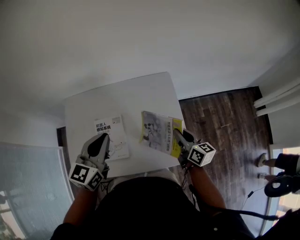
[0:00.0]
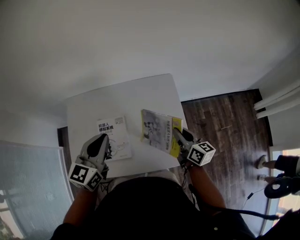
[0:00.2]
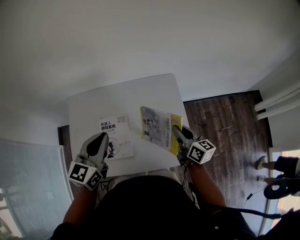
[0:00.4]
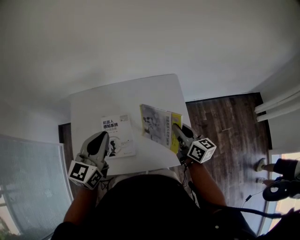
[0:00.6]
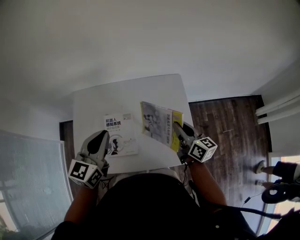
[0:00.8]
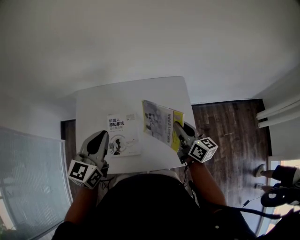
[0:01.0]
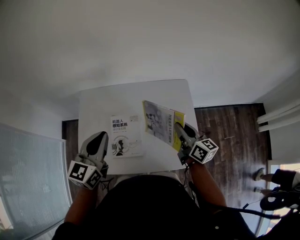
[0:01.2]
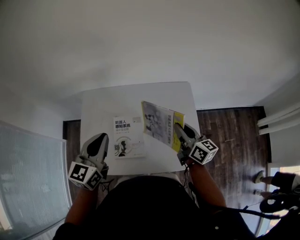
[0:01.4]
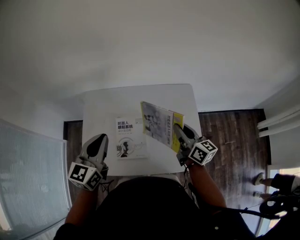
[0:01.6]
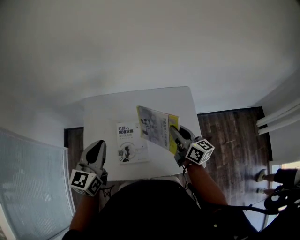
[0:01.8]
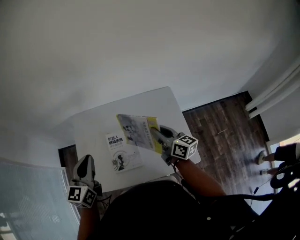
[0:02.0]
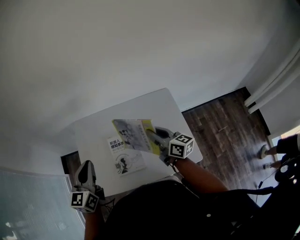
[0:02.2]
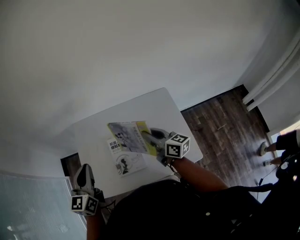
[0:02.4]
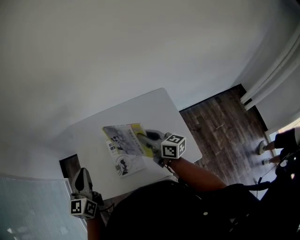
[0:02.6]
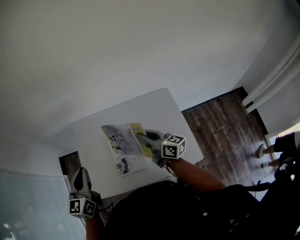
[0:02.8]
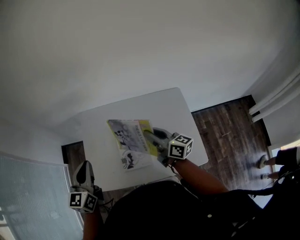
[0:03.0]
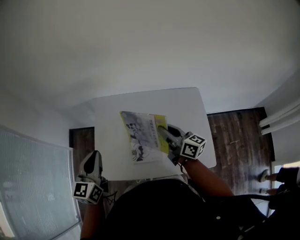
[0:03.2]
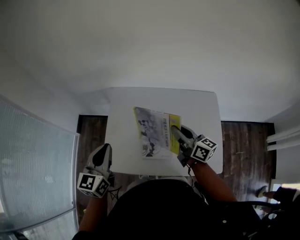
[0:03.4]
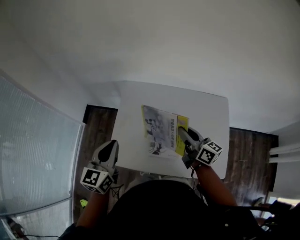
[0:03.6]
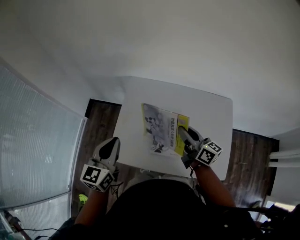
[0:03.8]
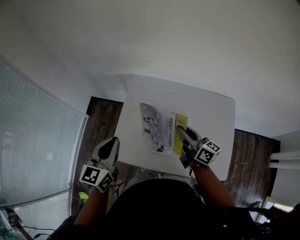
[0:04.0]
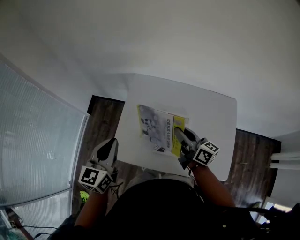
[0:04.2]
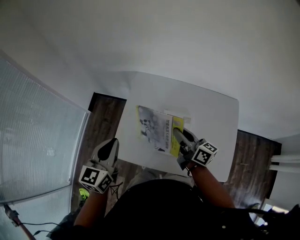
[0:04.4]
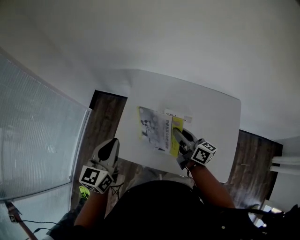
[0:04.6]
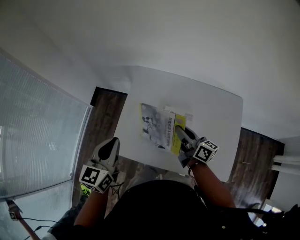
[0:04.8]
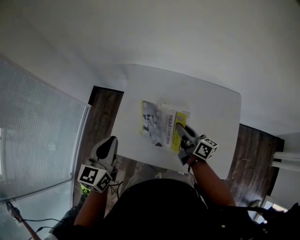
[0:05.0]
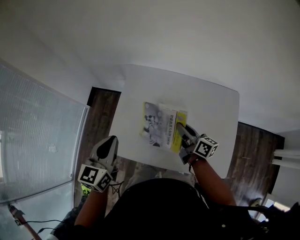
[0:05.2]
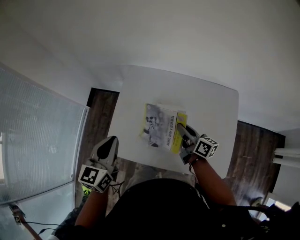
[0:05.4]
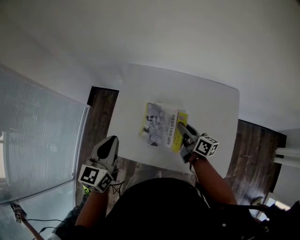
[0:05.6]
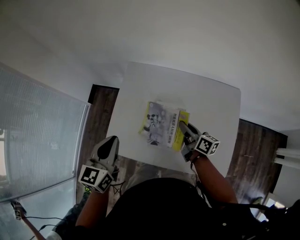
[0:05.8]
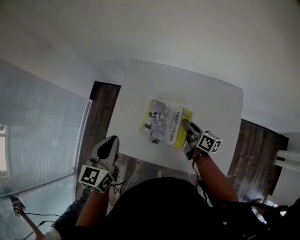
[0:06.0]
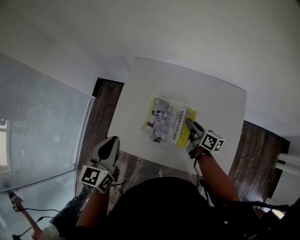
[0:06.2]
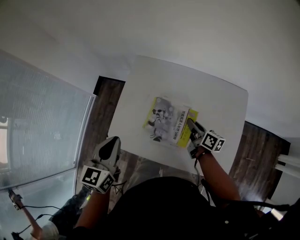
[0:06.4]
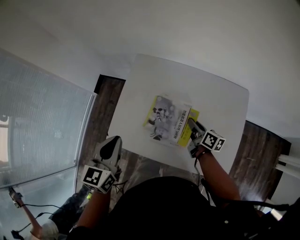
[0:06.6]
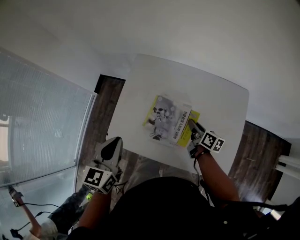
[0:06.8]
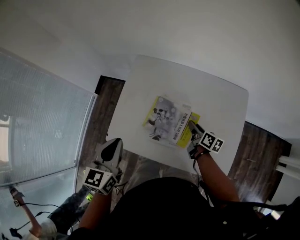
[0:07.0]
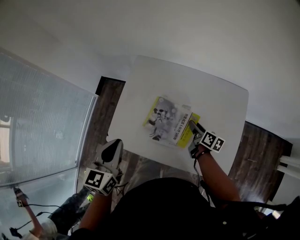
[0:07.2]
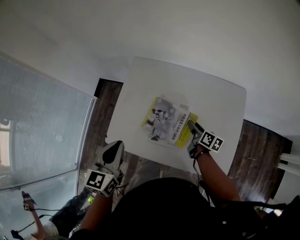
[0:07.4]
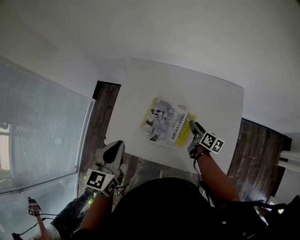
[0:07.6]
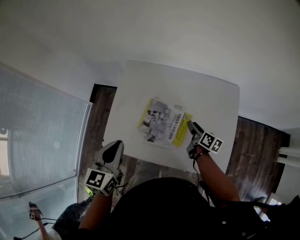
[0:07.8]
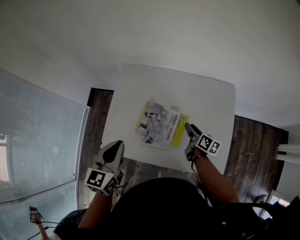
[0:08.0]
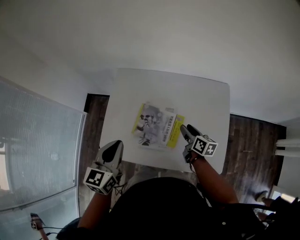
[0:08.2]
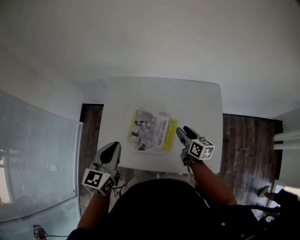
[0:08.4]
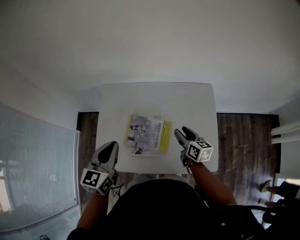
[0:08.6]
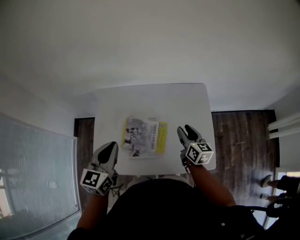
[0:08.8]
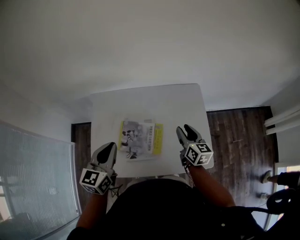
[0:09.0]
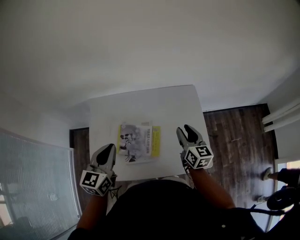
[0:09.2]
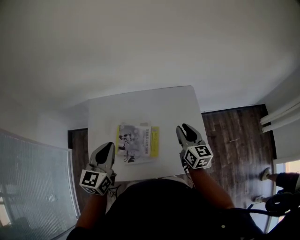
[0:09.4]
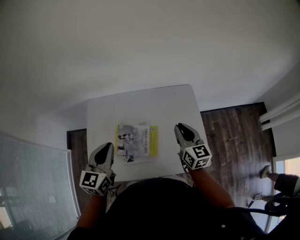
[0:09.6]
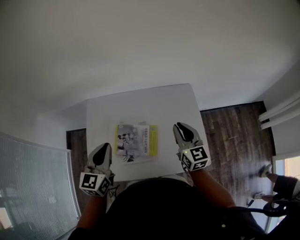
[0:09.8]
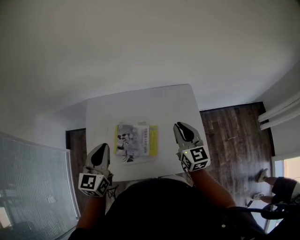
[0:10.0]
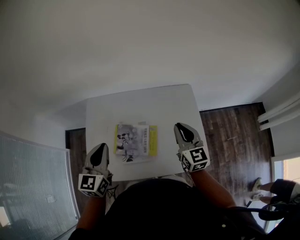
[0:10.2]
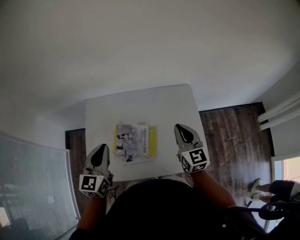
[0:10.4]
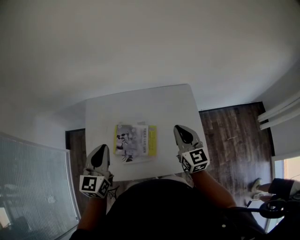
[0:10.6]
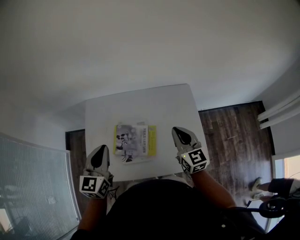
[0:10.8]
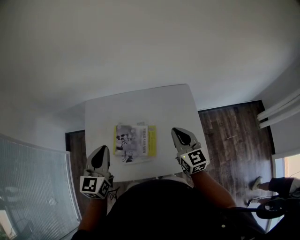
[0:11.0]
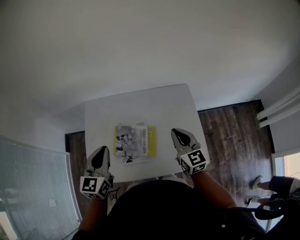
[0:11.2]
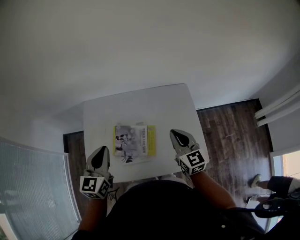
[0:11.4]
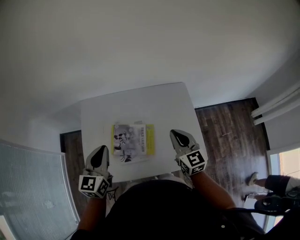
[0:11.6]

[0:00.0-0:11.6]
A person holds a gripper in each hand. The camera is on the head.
0:00.0 to 0:01.4: Both grippers travel together to the left, about 15 cm.
0:01.4 to 0:02.8: The right gripper moves upward, approximately 20 cm. Meanwhile the left gripper shifts approximately 20 cm upward and backward.
0:02.8 to 0:04.4: The left gripper moves to the right, roughly 5 cm.
0:04.4 to 0:05.8: The right gripper heads downward, covering about 10 cm.
0:05.8 to 0:07.2: The right gripper shifts roughly 10 cm downward.
0:07.2 to 0:08.8: The left gripper heads to the right and forward, covering about 10 cm, and swivels about 20 degrees, while the right gripper goes roughly 15 cm upward and to the right, and turns by roughly 30 degrees.
0:08.8 to 0:10.2: The right gripper heads upward, covering approximately 10 cm, rotates approximately 30 degrees, and closes up.
0:10.2 to 0:11.6: The grippers stay close to where they were, moving slightly.

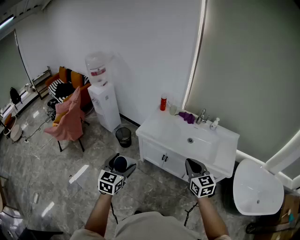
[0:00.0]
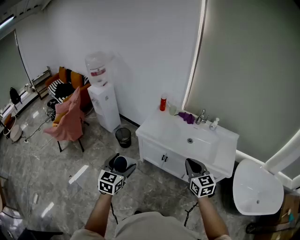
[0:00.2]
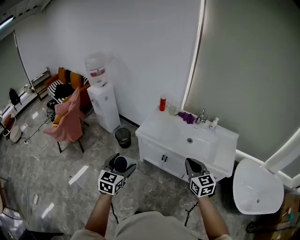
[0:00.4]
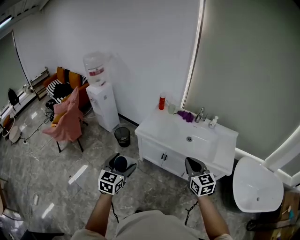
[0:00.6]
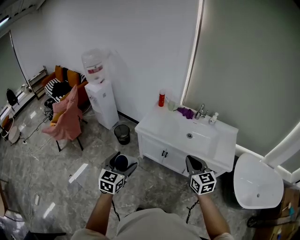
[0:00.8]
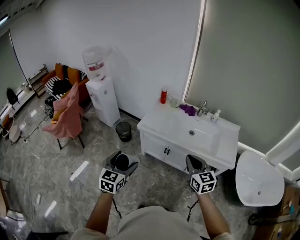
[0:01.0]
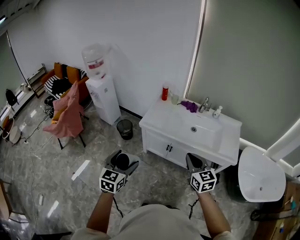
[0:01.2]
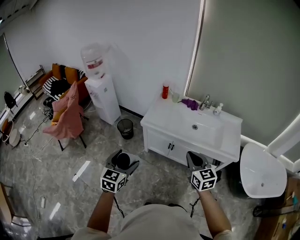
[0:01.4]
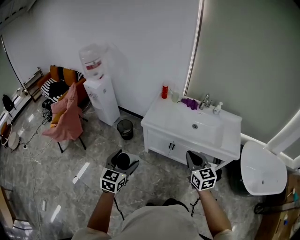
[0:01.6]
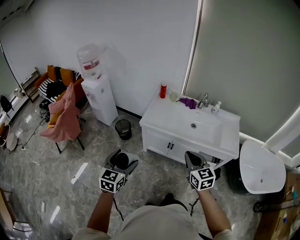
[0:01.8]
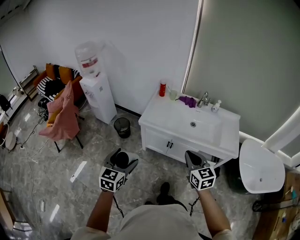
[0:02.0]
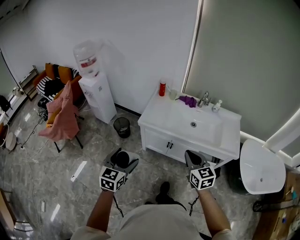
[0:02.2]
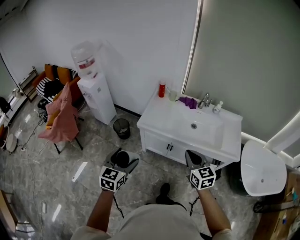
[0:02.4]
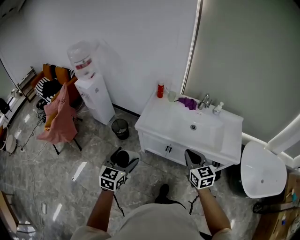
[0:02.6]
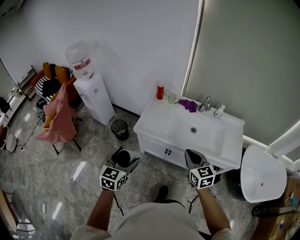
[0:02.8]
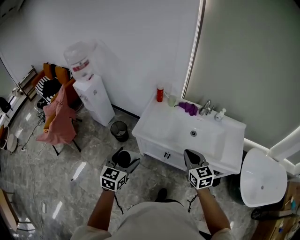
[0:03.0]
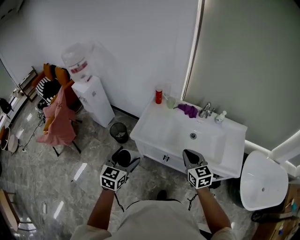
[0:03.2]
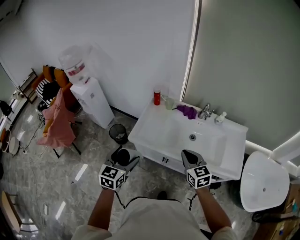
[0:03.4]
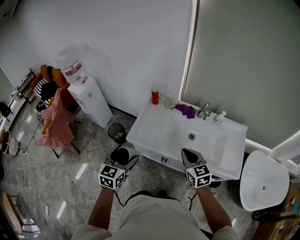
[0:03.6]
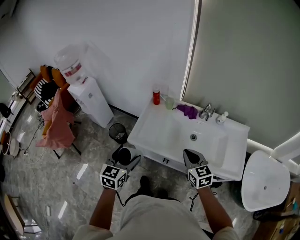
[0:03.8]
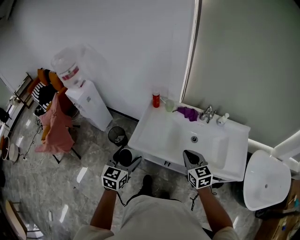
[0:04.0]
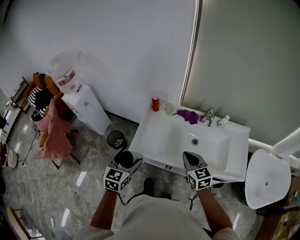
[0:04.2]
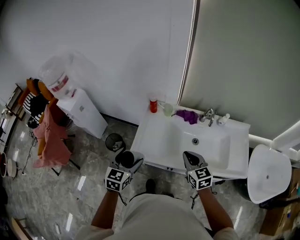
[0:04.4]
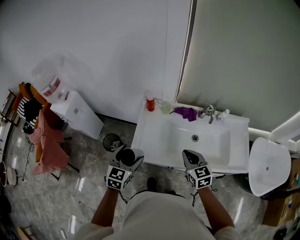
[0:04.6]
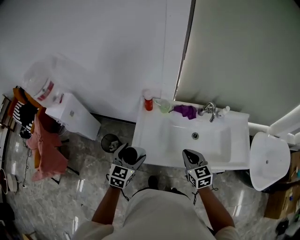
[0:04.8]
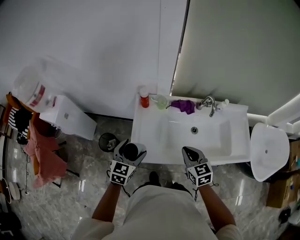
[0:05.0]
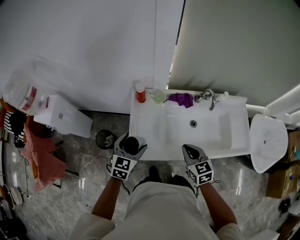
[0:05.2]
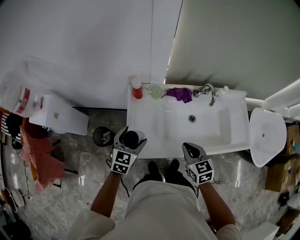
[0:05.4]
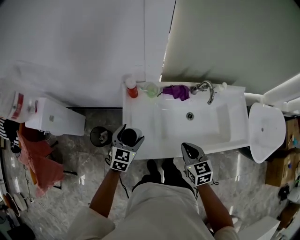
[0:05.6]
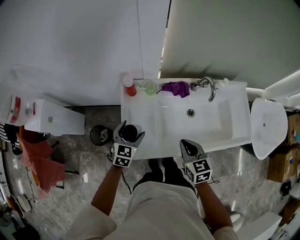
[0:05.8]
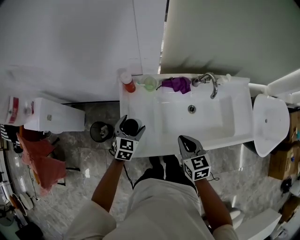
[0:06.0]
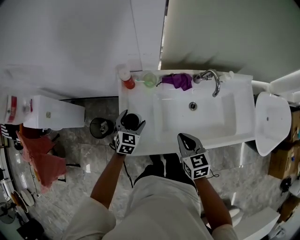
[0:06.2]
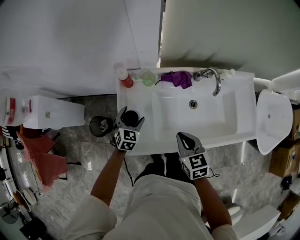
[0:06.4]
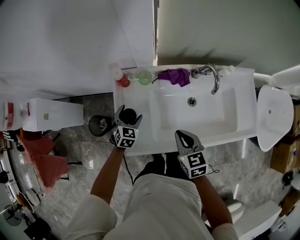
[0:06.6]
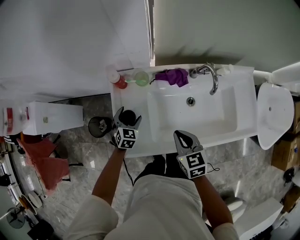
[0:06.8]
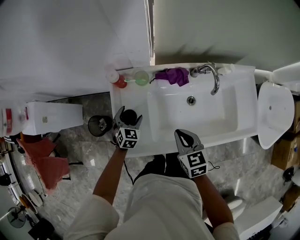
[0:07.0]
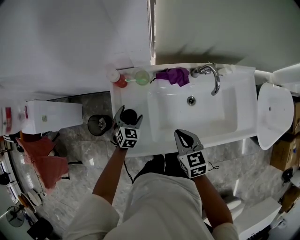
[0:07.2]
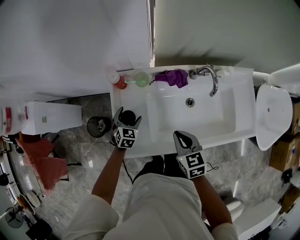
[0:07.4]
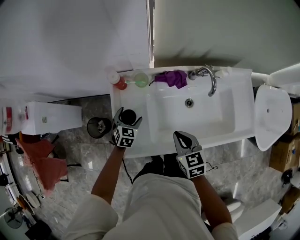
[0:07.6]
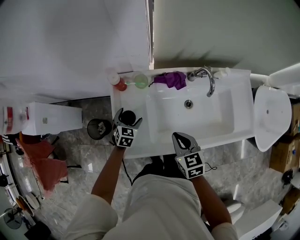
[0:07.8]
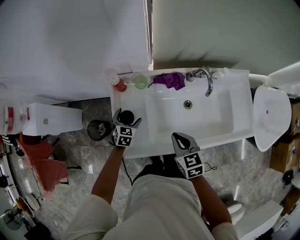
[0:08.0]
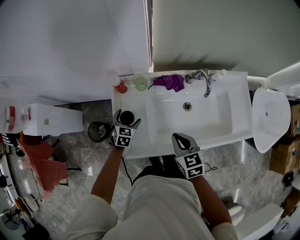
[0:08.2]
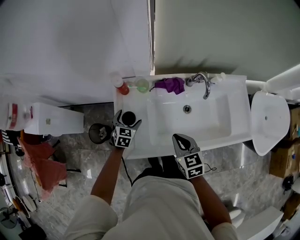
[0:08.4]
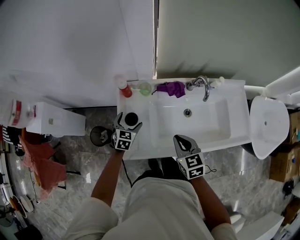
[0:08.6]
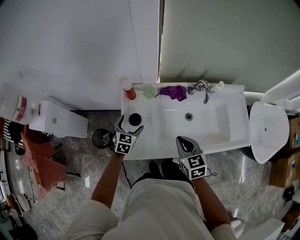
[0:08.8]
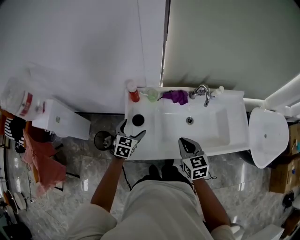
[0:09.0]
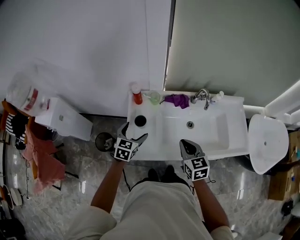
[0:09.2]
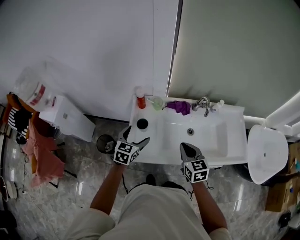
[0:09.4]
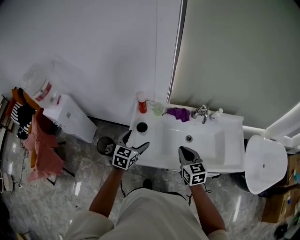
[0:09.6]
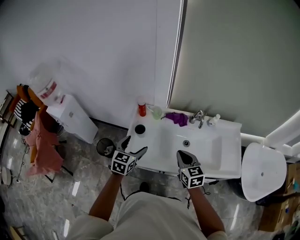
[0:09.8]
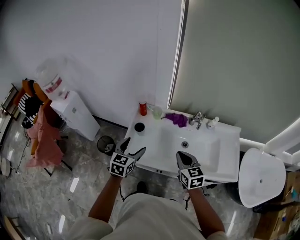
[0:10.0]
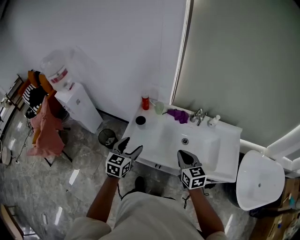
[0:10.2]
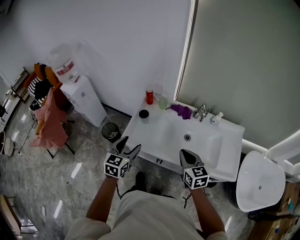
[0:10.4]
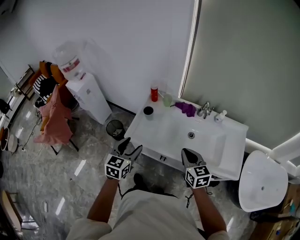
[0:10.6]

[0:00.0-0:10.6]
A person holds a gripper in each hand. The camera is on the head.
0:00.0 to 0:01.6: The two grippers go about 10 cm to the left.
0:01.6 to 0:03.0: The two grippers go some 20 cm forward.
0:03.0 to 0:04.6: The grippers both shift forward by some 20 cm.
0:04.6 to 0:06.0: The right gripper goes some 10 cm downward and forward; the left gripper travels forward and downward by about 25 cm.
0:06.0 to 0:07.6: The left gripper travels downward by roughly 10 cm.
0:07.6 to 0:09.0: The left gripper shifts approximately 15 cm upward and backward, while the right gripper shifts some 5 cm upward.
0:09.0 to 0:10.6: The right gripper goes some 15 cm backward, to the right and upward, and swivels some 20 degrees, while the left gripper is displaced backward and upward by some 30 cm, turns by some 30 degrees, and closes up.

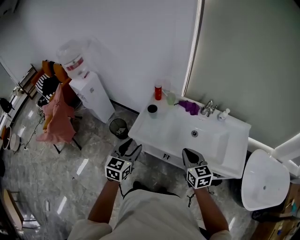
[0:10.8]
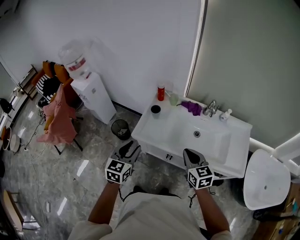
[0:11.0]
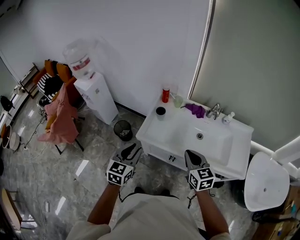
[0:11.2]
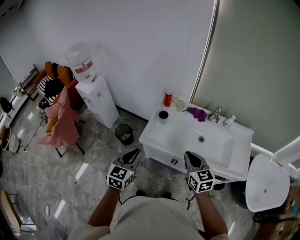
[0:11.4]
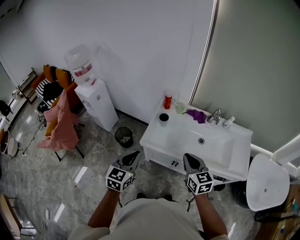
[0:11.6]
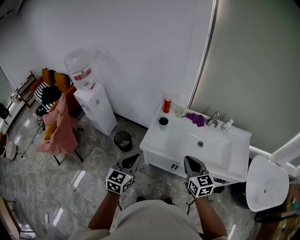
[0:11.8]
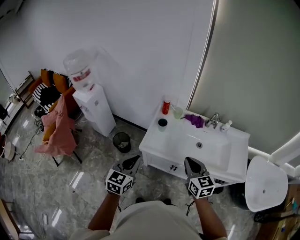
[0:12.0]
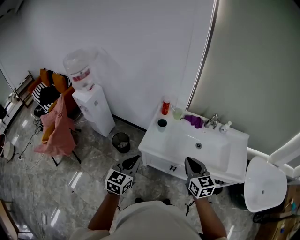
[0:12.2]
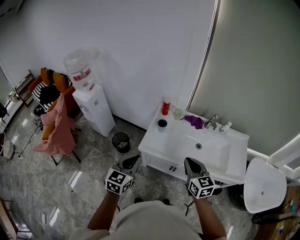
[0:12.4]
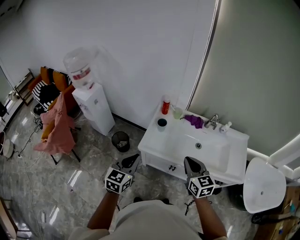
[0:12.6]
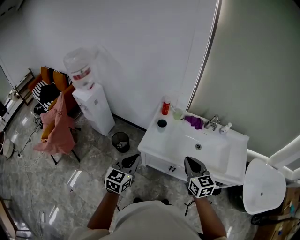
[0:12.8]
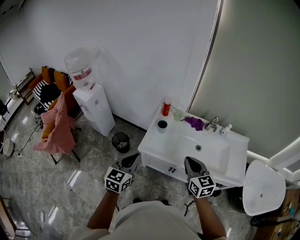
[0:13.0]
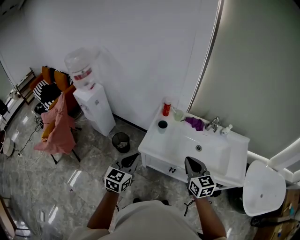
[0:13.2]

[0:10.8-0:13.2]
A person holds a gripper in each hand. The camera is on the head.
0:10.8 to 0:12.0: The left gripper is displaced to the left by some 10 cm, and closes. Meanwhile the right gripper heads to the left and upward, covering about 10 cm.
0:12.0 to 0:13.2: The grippers move only a little.
